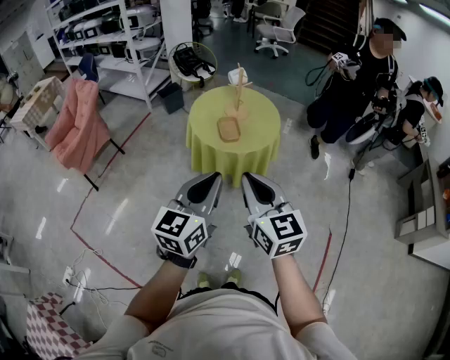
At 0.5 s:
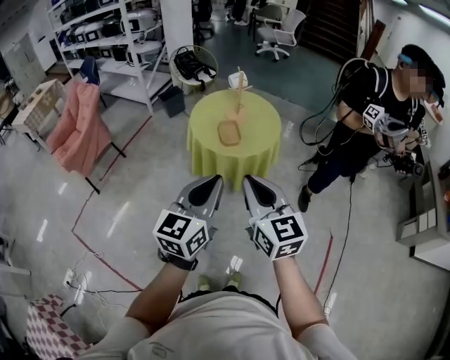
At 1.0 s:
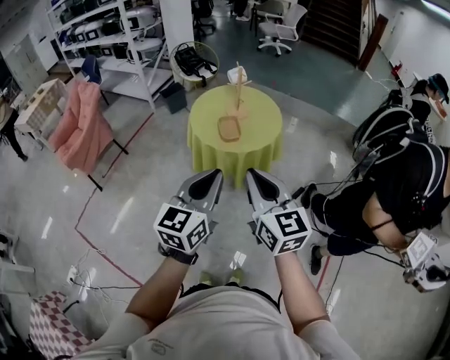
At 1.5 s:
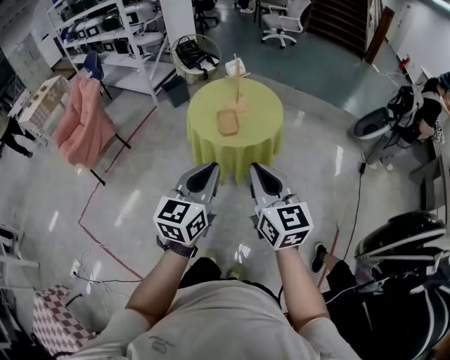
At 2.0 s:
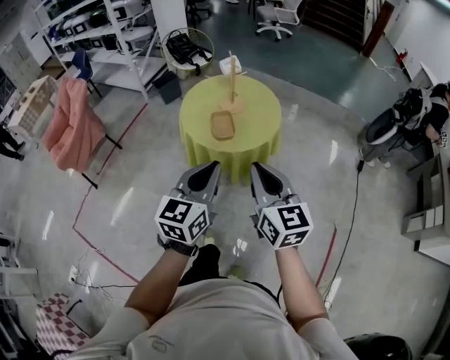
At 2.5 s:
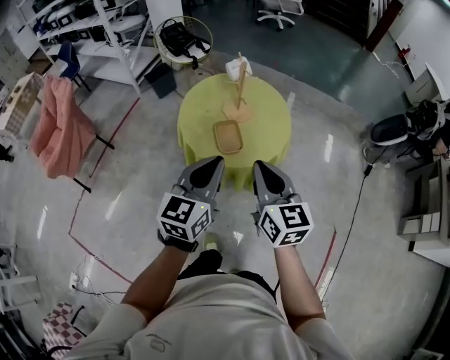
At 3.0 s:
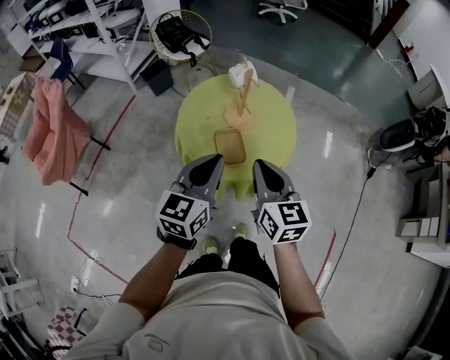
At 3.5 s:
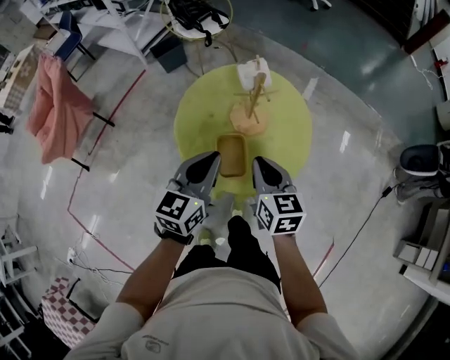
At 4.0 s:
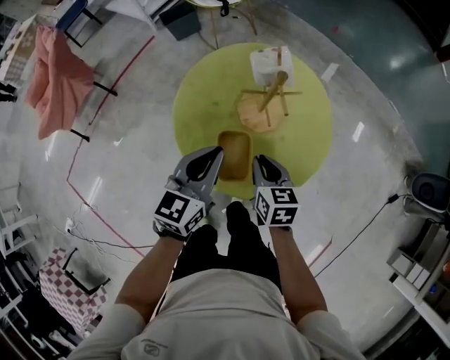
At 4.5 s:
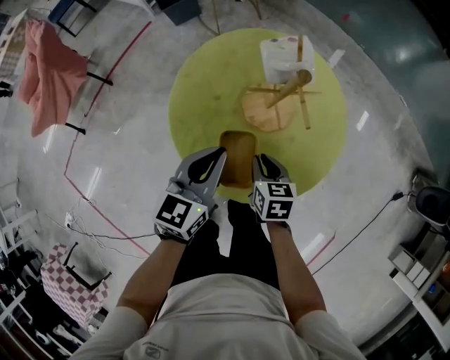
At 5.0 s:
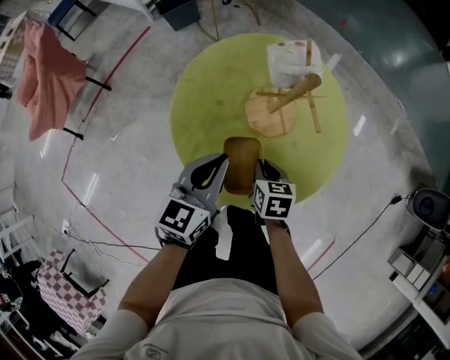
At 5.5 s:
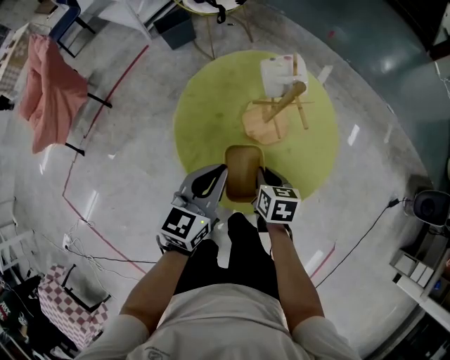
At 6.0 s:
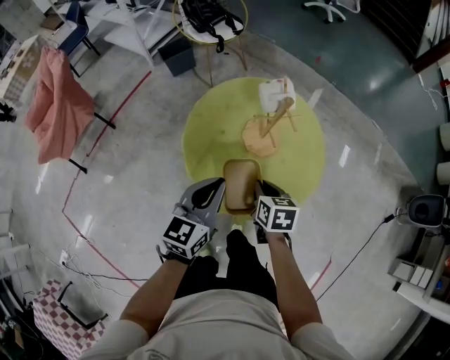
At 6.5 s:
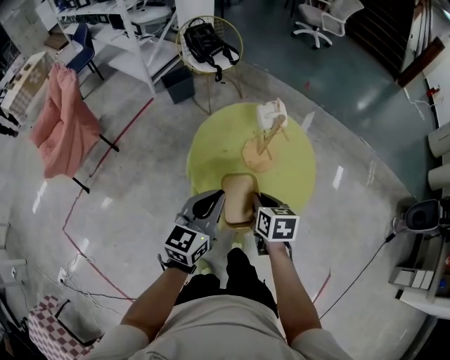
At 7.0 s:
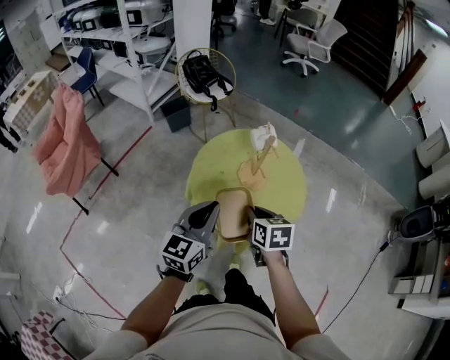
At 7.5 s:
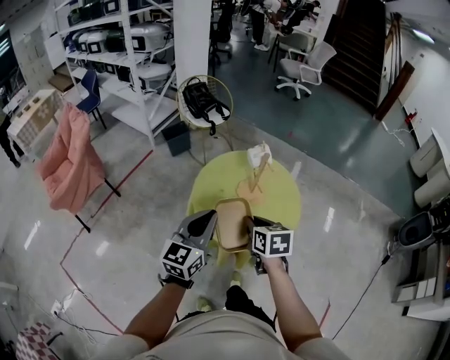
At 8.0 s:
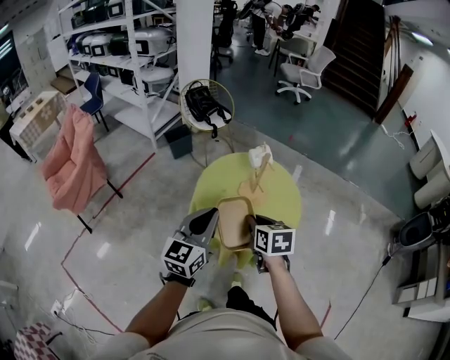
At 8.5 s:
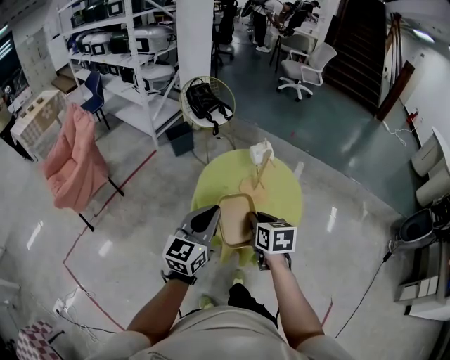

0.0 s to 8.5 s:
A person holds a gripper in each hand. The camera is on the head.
0.0 to 2.0 s: The left gripper is displaced forward and downward by roughly 15 cm; the right gripper shifts approximately 15 cm forward and to the right.
2.0 to 4.0 s: The two grippers travel together, forward, roughly 40 cm. The left gripper heads downward, covering roughly 20 cm. The right gripper heads downward, covering approximately 30 cm, and tilts its fingers approximately 30 degrees downward.
4.0 to 6.5 s: The left gripper heads backward, upward and to the left, covering about 10 cm, while the right gripper shifts some 10 cm upward and backward.
6.5 to 8.5 s: The grippers both shift upward and backward by about 15 cm.

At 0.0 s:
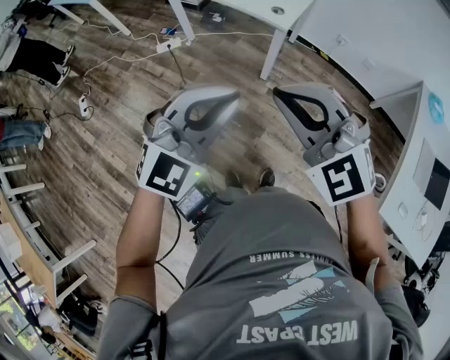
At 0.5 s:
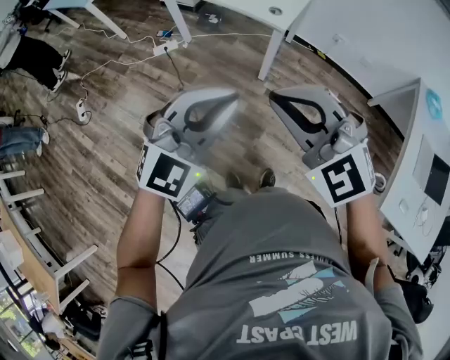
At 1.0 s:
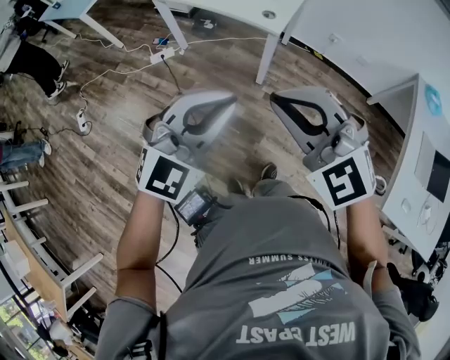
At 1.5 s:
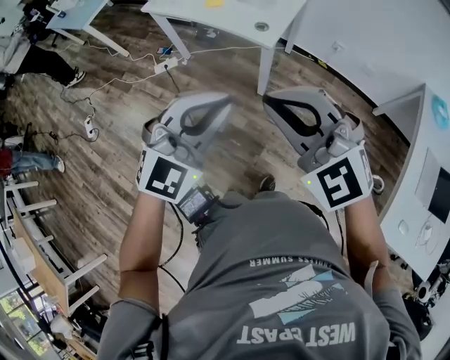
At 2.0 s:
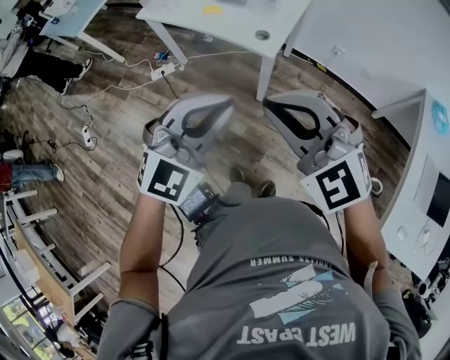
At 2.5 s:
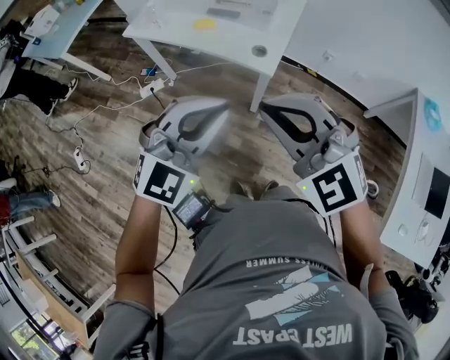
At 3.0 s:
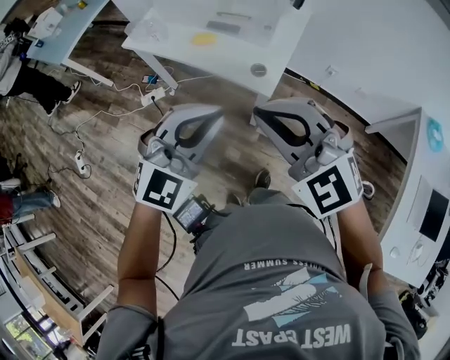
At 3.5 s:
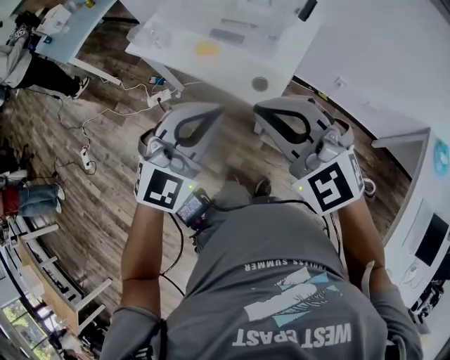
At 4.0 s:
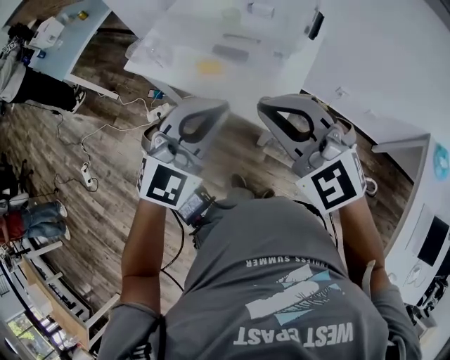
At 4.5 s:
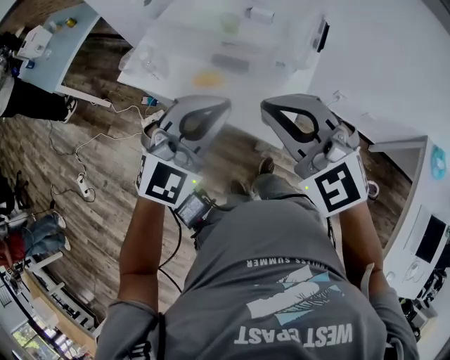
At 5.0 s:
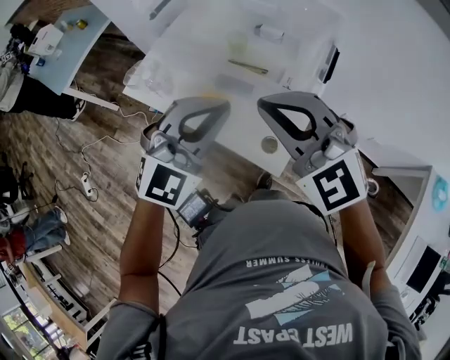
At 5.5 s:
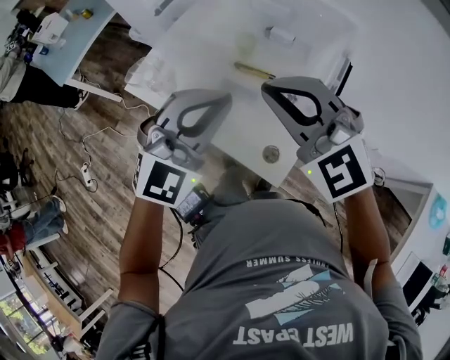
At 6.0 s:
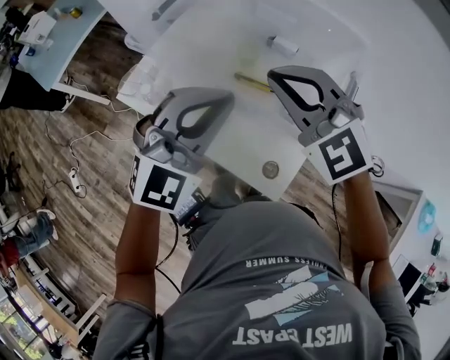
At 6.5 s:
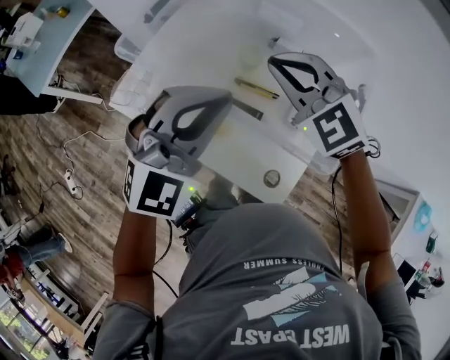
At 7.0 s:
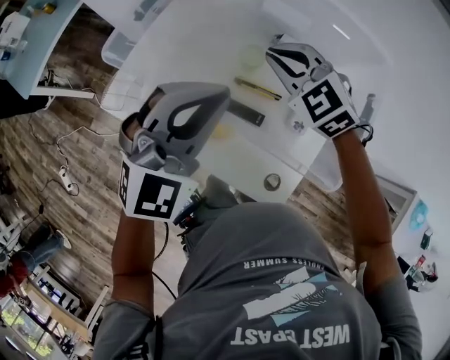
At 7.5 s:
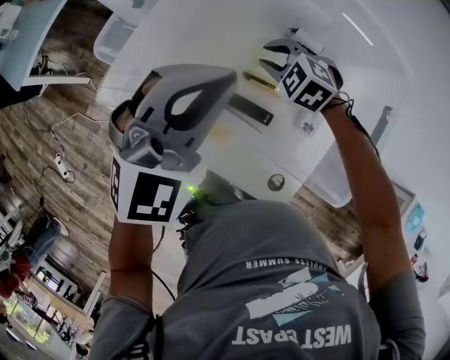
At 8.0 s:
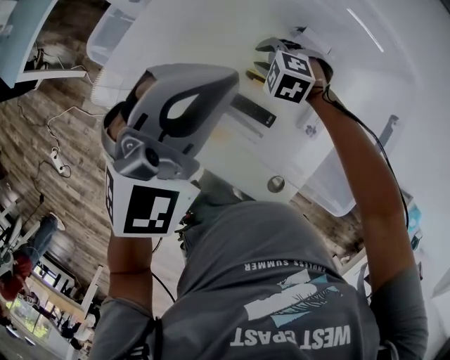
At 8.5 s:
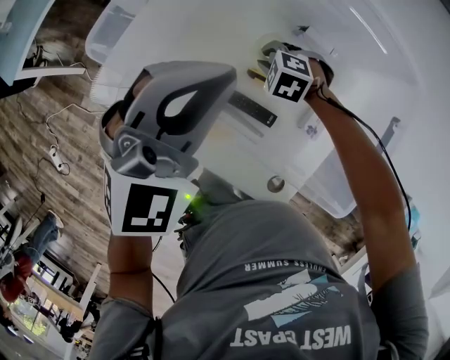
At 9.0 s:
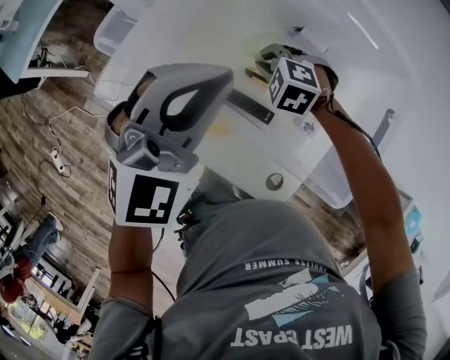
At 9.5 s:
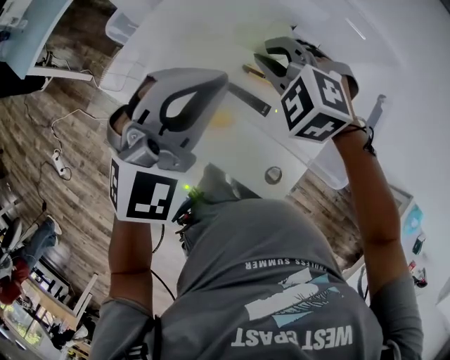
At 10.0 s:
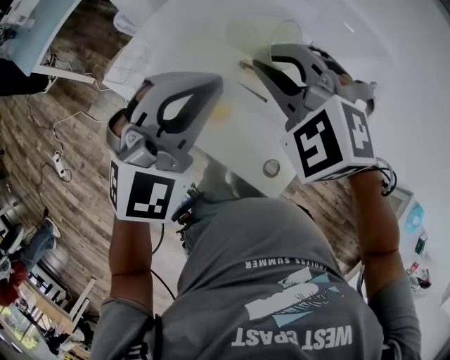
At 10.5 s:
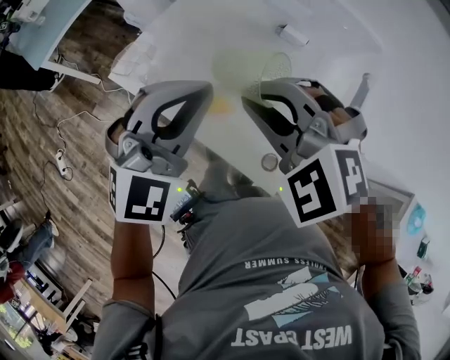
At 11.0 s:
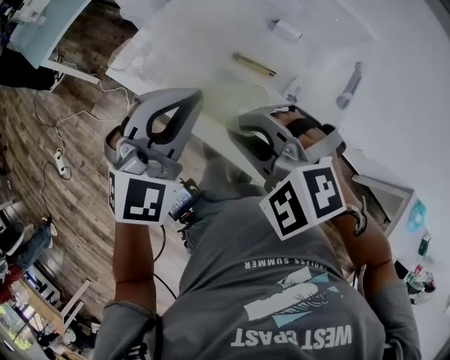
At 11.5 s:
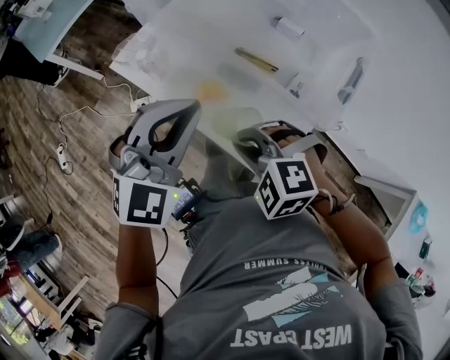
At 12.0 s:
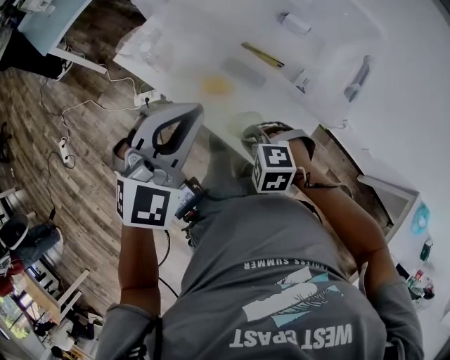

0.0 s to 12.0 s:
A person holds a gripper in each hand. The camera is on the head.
0.0 to 2.0 s: The right gripper shifts roughly 15 cm forward and to the right. Meanwhile the left gripper is displaced forward by roughly 15 cm.
2.0 to 4.0 s: The two grippers go some 30 cm forward.
4.0 to 6.0 s: Both grippers move forward, approximately 30 cm.
6.0 to 8.0 s: The left gripper goes some 15 cm forward, while the right gripper moves downward and forward, some 40 cm, tilts its fingers about 50 degrees downward, and opens its fingers.
8.0 to 10.0 s: The right gripper is displaced upward by roughly 25 cm, turns by some 30 degrees, and closes. Meanwhile the left gripper shifts by about 10 cm.
10.0 to 12.0 s: The right gripper travels backward and downward by roughly 30 cm, and swivels some 30 degrees. The left gripper heads backward, covering approximately 15 cm.

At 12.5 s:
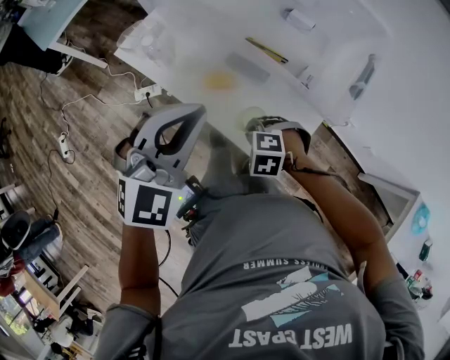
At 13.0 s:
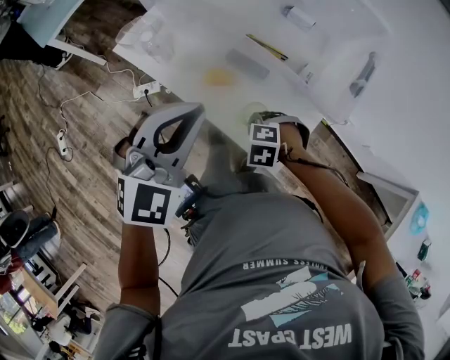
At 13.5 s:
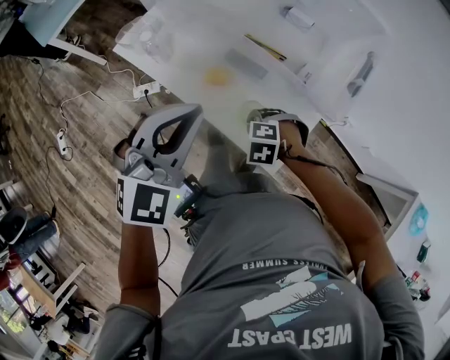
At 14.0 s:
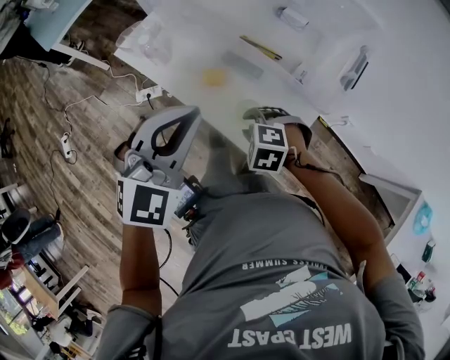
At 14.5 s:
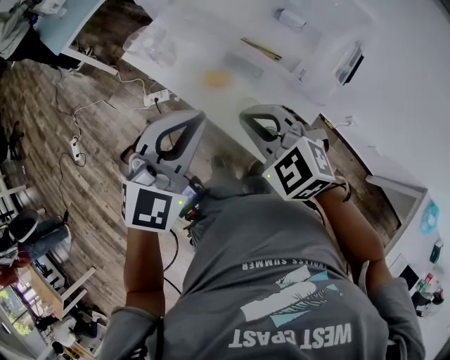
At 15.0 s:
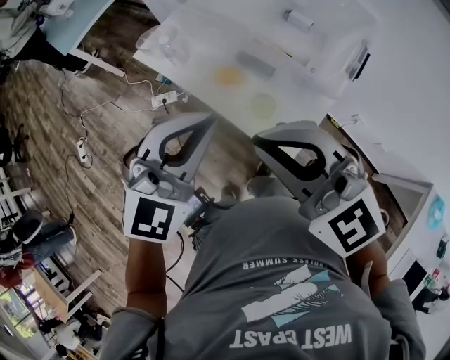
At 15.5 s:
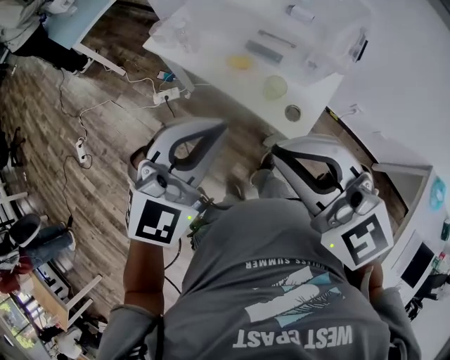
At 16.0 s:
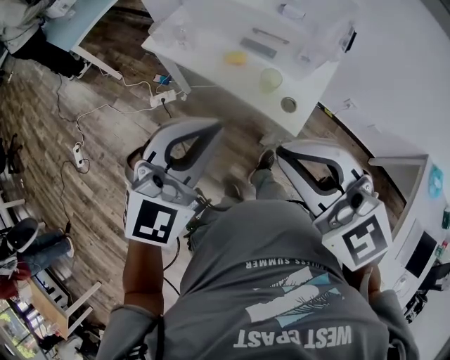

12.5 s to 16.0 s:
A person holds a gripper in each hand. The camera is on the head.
12.5 to 14.5 s: The right gripper shifts approximately 20 cm upward, points its fingers roughly 40 degrees further upward, and opens and closes again; the left gripper shifts by some 5 cm.
14.5 to 16.0 s: The left gripper goes about 20 cm backward and to the left; the right gripper is displaced backward and upward by approximately 25 cm, and rotates about 20 degrees.

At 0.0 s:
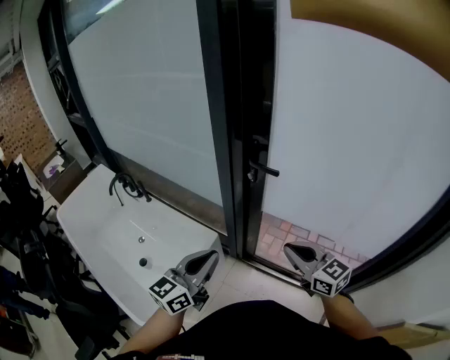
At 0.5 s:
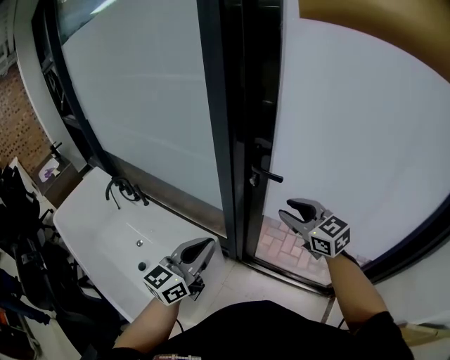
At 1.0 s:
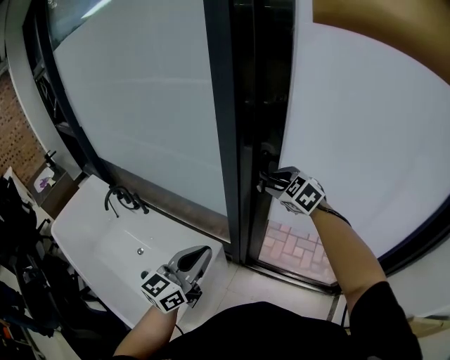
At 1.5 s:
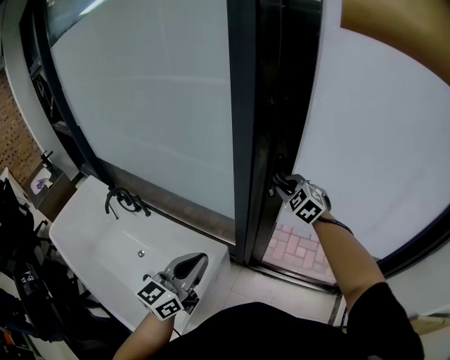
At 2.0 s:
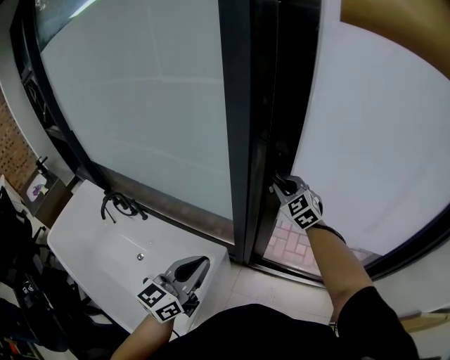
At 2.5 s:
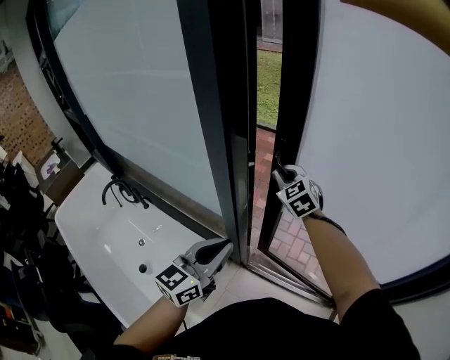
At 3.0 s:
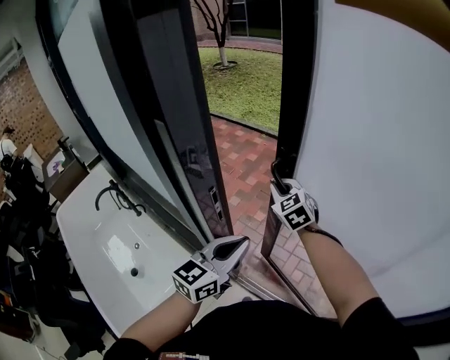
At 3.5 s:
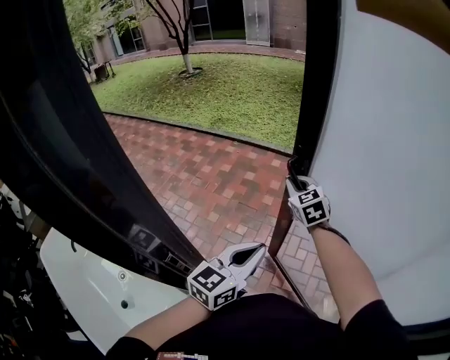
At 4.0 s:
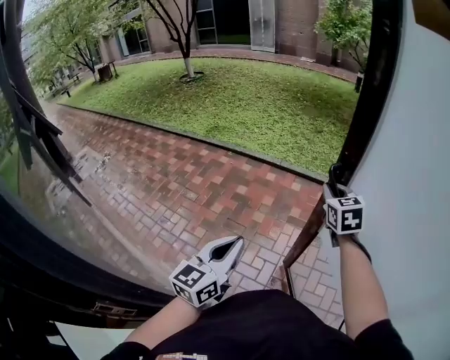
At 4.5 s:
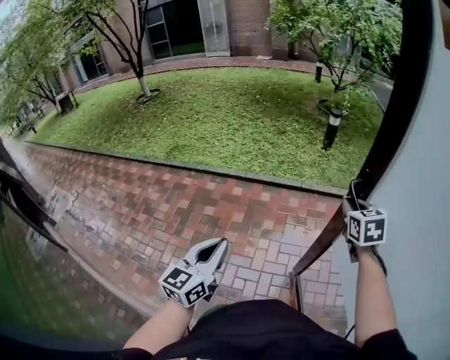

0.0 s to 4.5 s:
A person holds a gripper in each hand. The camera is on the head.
0.0 to 2.0 s: The right gripper is displaced forward by approximately 30 cm, rotates roughly 40 degrees, and opens and closes again, while the left gripper moves to the left and forward, approximately 15 cm.
2.0 to 4.5 s: Both grippers are carried forward and to the right, about 80 cm. The right gripper swivels approximately 50 degrees.
